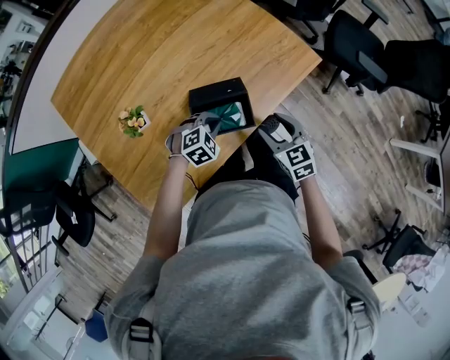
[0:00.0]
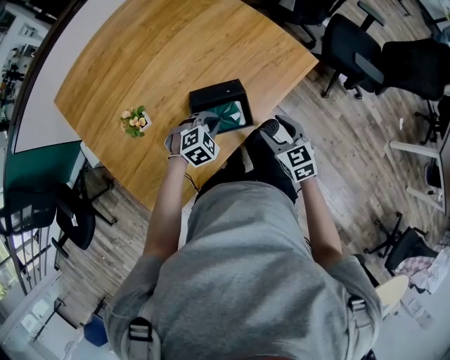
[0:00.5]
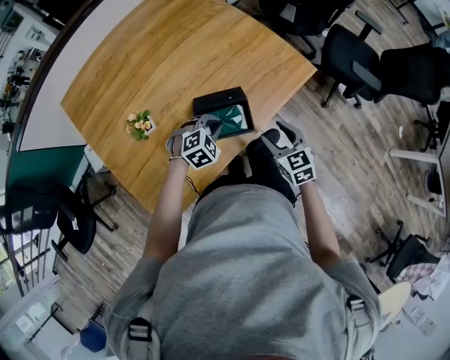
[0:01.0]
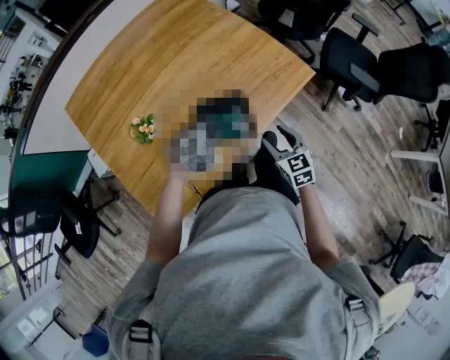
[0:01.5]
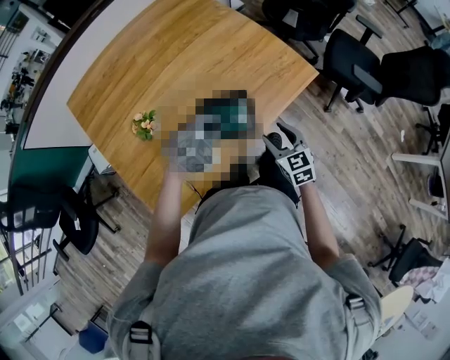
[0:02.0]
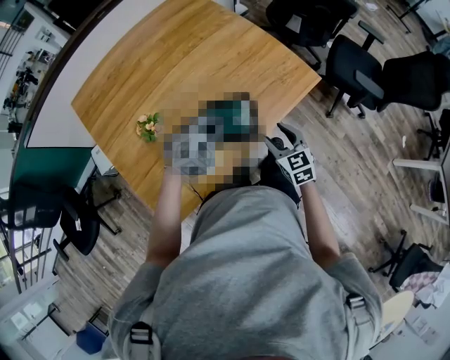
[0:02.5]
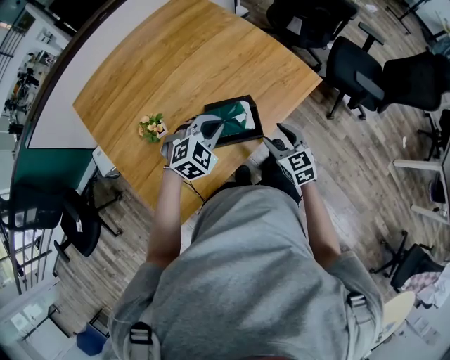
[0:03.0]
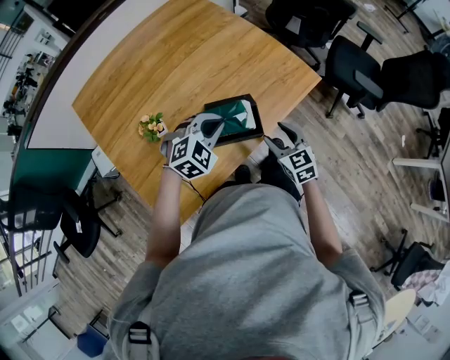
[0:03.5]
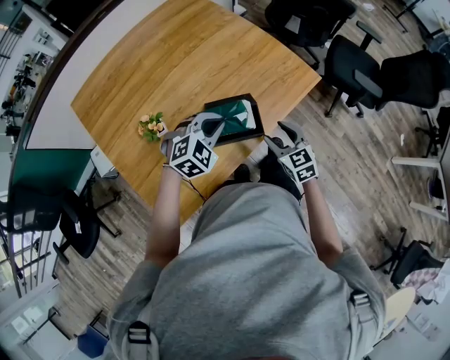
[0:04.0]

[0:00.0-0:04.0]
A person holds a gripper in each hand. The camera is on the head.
0:00.0 to 0:02.0: The left gripper shifts approximately 10 cm upward.
0:02.0 to 0:04.0: The left gripper heads upward, covering roughly 5 cm.

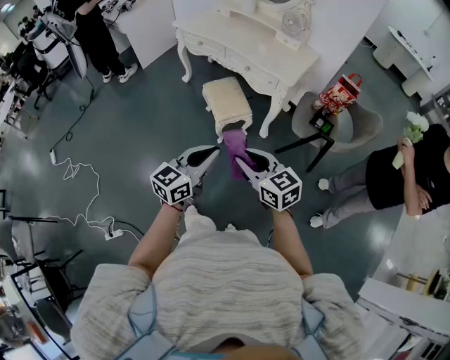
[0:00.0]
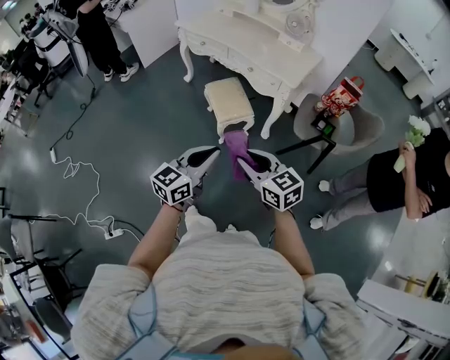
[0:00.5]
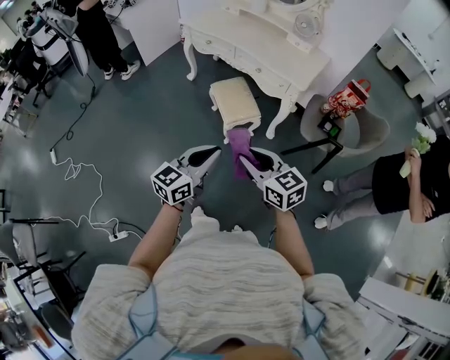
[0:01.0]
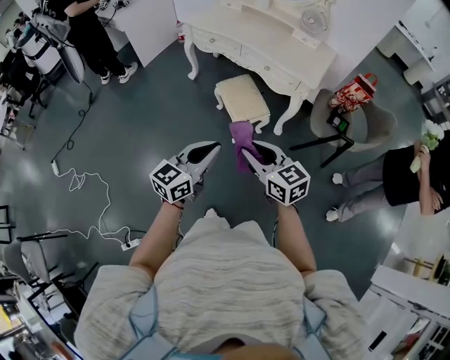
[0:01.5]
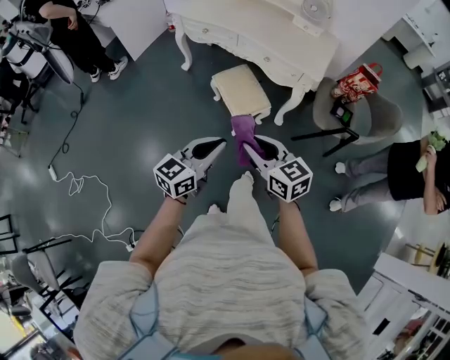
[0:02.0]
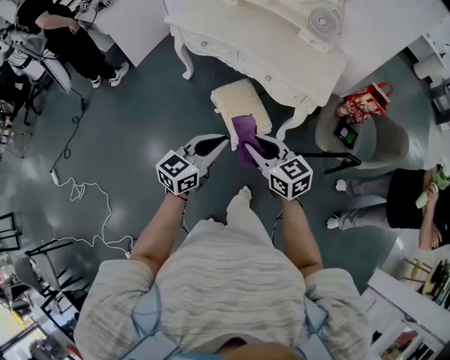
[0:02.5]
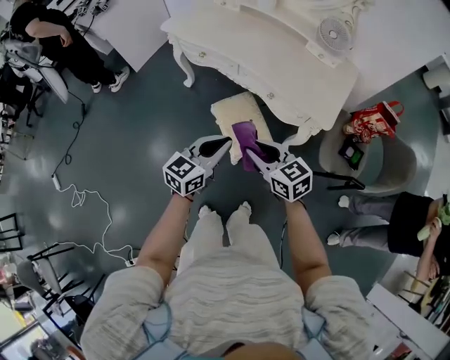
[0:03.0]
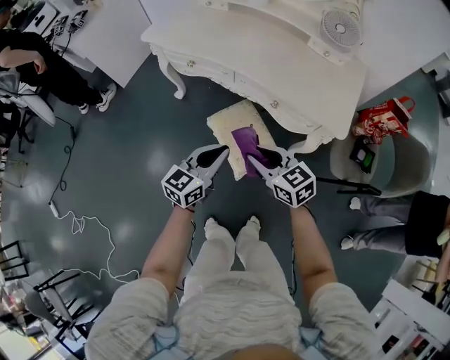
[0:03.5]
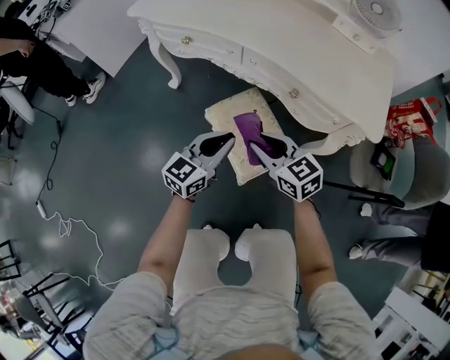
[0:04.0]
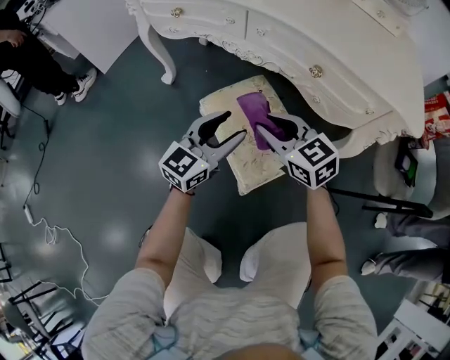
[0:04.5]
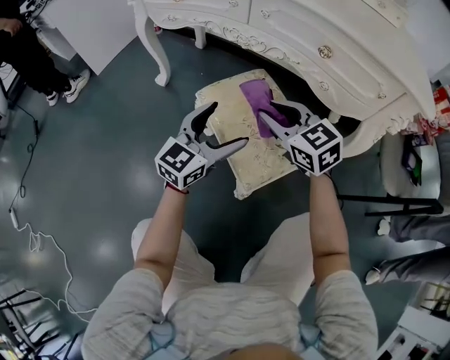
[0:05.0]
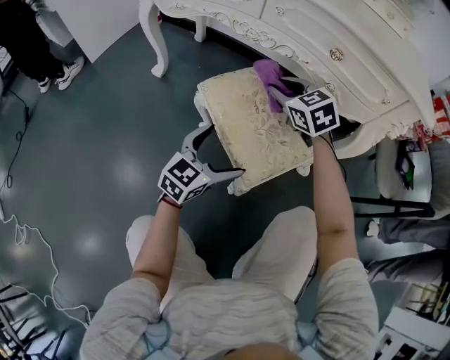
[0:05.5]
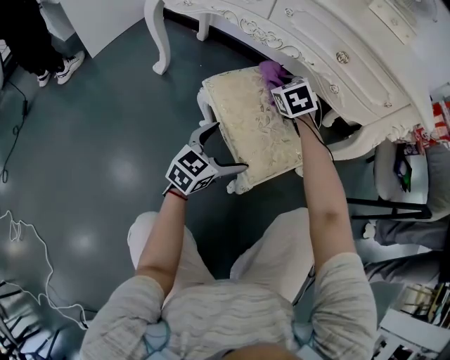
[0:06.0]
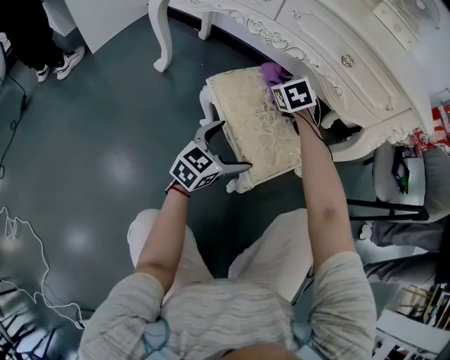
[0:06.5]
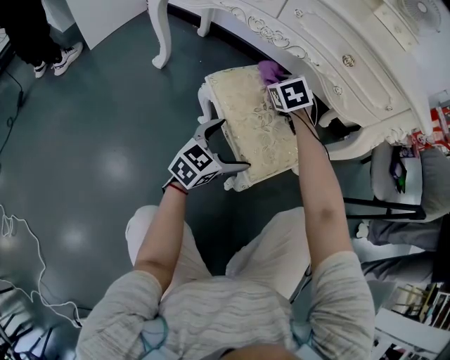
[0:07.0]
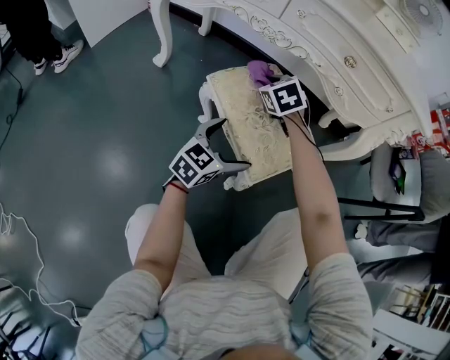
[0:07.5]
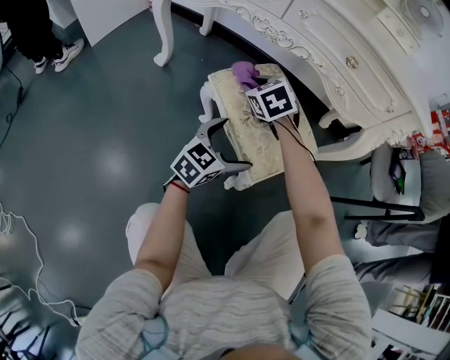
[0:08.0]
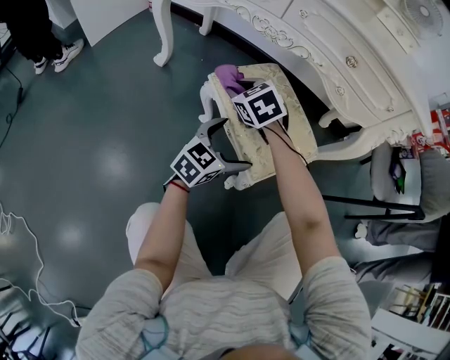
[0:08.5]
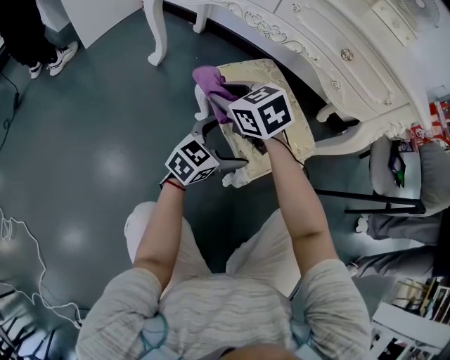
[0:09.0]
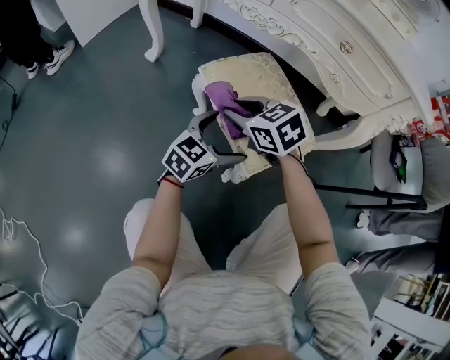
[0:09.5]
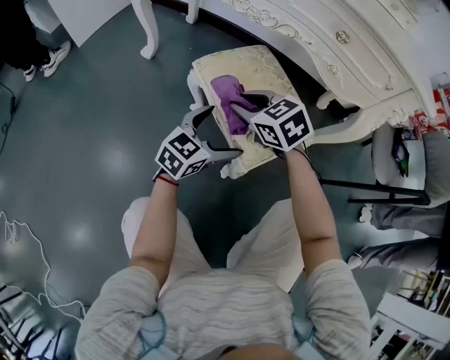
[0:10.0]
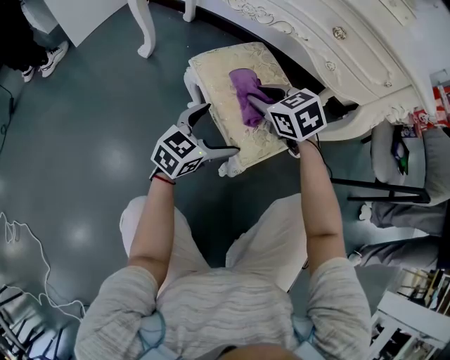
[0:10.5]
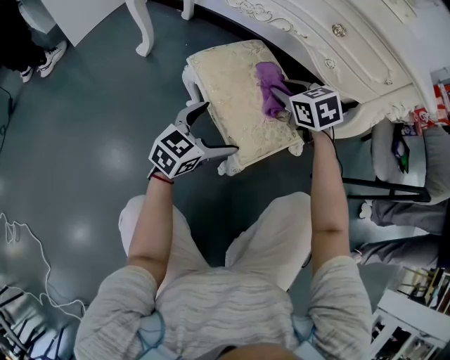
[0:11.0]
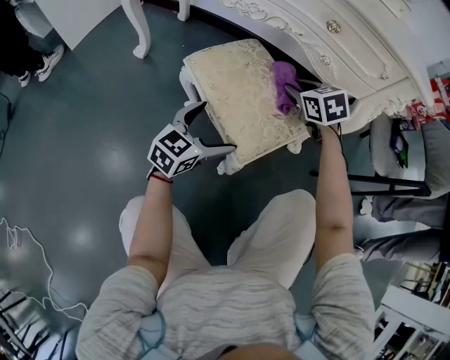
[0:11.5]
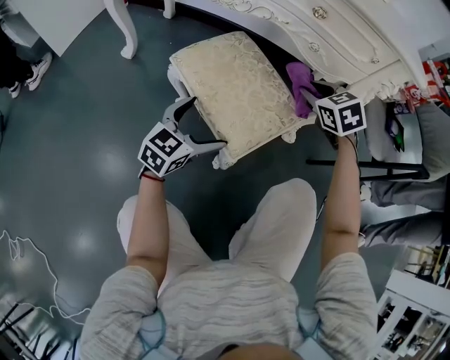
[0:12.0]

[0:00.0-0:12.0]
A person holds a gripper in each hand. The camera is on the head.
0:00.0 to 0:02.0: Both grippers travel together forward and to the left, approximately 20 cm.
0:02.0 to 0:04.0: The two grippers go some 50 cm forward and downward.
0:04.0 to 0:06.0: The right gripper shifts about 30 cm downward and forward, and swivels about 40 degrees. Meanwhile the left gripper goes approximately 30 cm downward, and opens up.
0:06.0 to 0:08.0: The right gripper is displaced to the left and backward by about 10 cm.
0:08.0 to 0:10.0: The right gripper travels backward by about 10 cm.
0:10.0 to 0:12.0: The right gripper goes approximately 20 cm to the right, and rotates about 30 degrees.

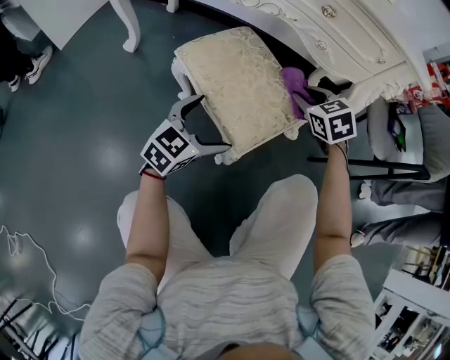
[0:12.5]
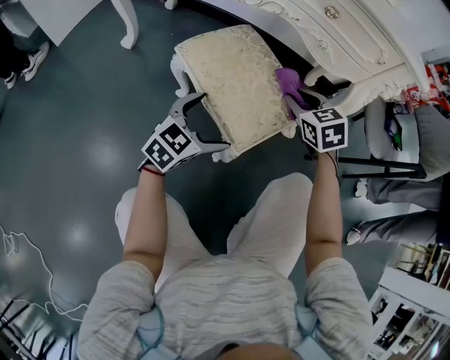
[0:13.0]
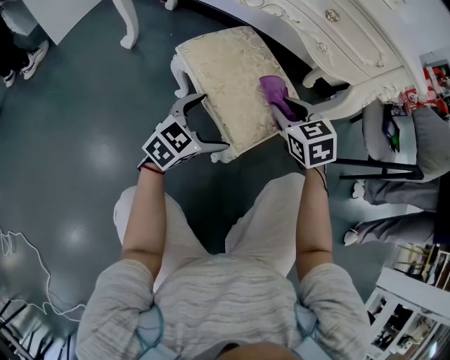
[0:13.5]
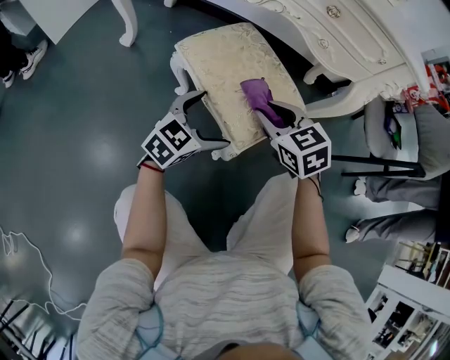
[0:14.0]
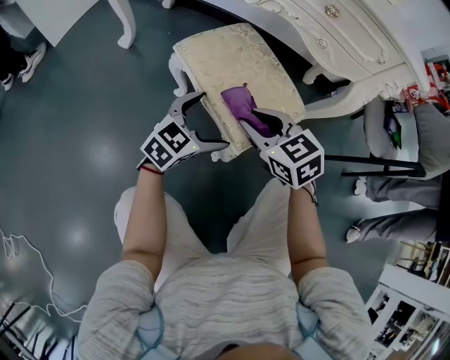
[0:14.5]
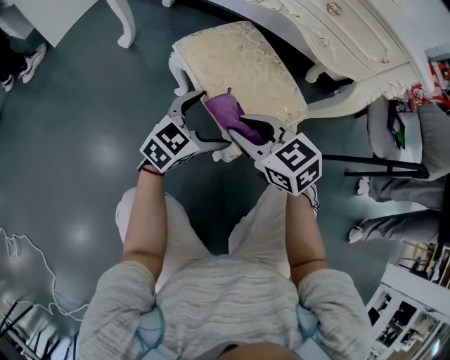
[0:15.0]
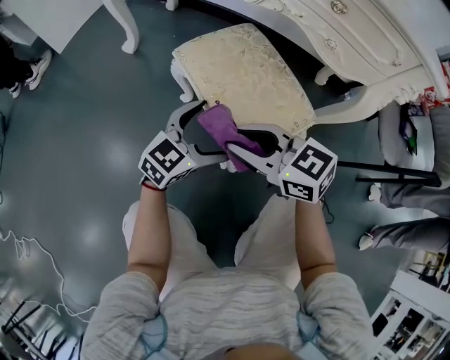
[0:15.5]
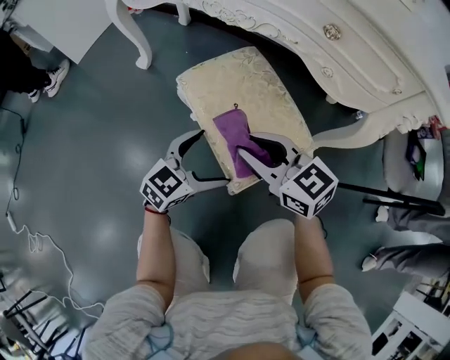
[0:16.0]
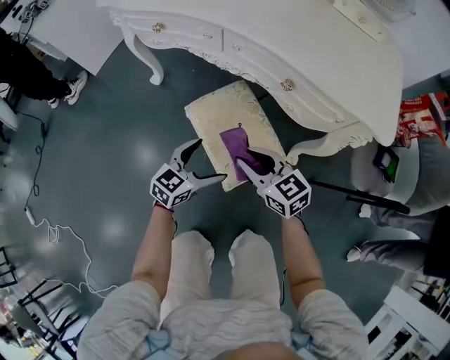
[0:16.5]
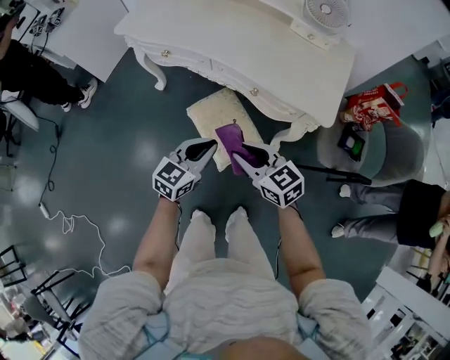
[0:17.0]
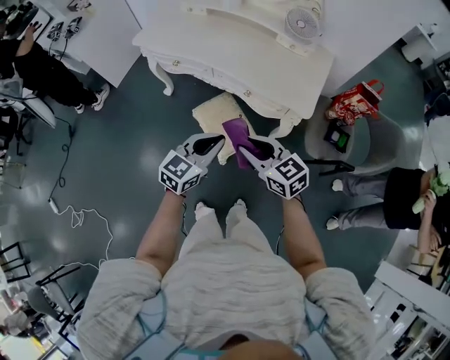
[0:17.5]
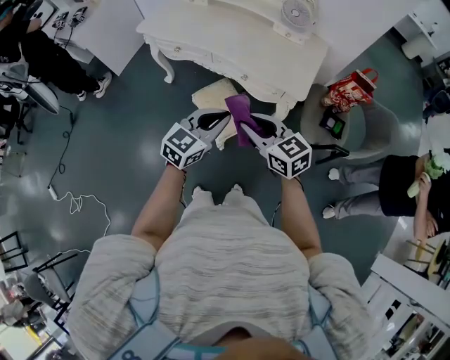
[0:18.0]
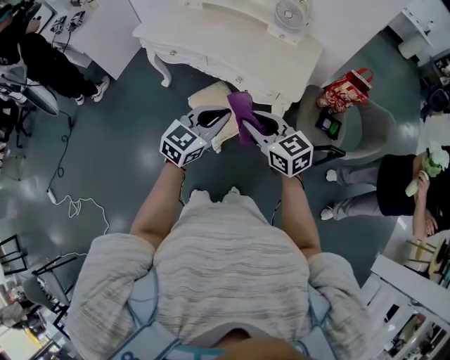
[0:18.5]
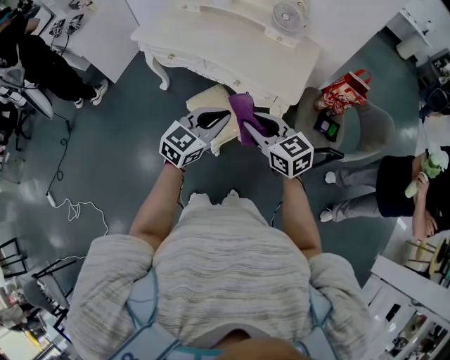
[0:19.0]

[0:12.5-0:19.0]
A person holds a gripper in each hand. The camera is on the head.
0:12.5 to 0:14.5: The right gripper heads backward and to the left, covering approximately 20 cm, and rotates roughly 20 degrees.
0:14.5 to 0:17.0: Both grippers travel together upward, approximately 40 cm. The left gripper closes up. The right gripper swivels approximately 20 degrees.
0:17.0 to 0:19.0: Both grippers travel together upward and to the right, some 25 cm.

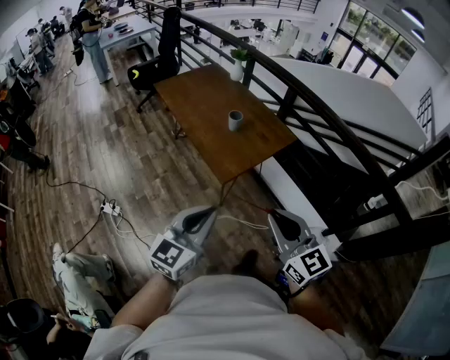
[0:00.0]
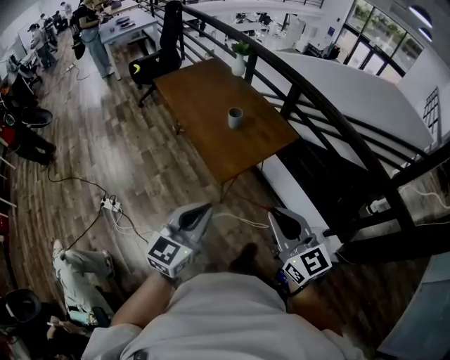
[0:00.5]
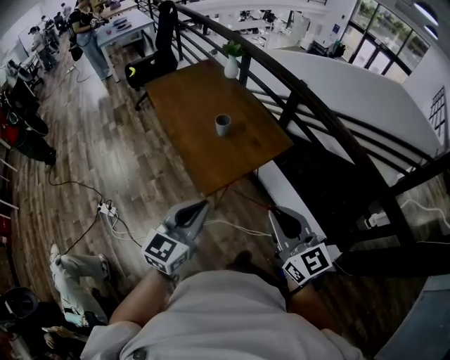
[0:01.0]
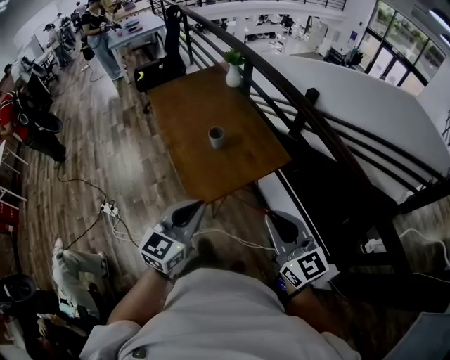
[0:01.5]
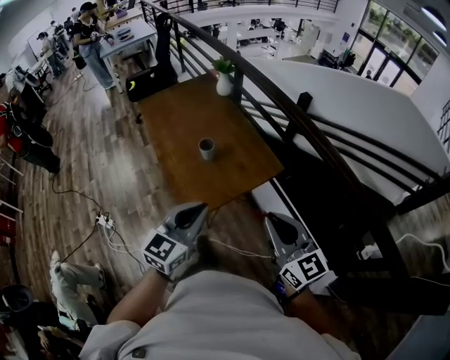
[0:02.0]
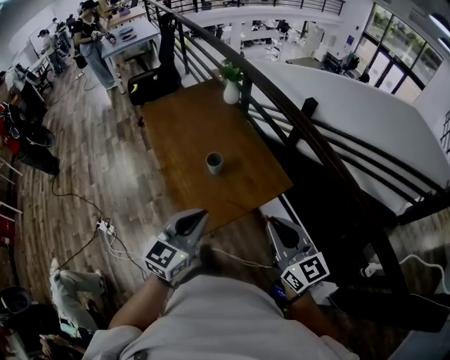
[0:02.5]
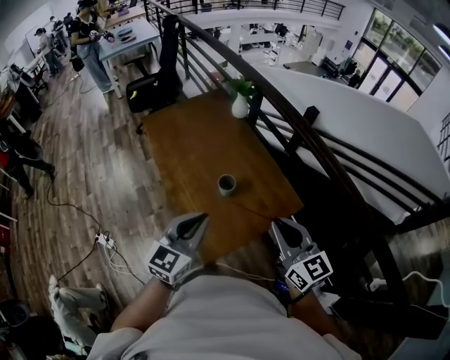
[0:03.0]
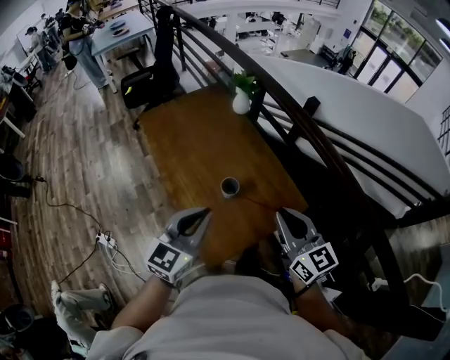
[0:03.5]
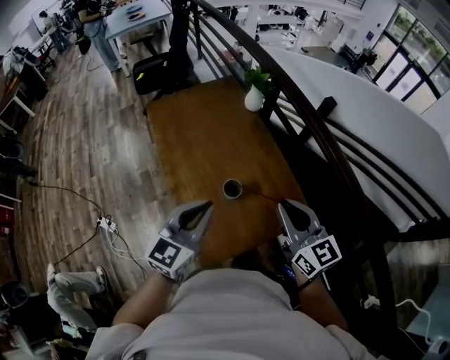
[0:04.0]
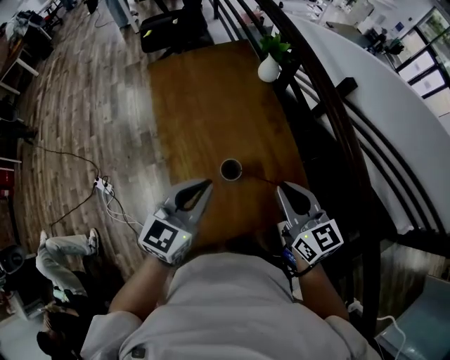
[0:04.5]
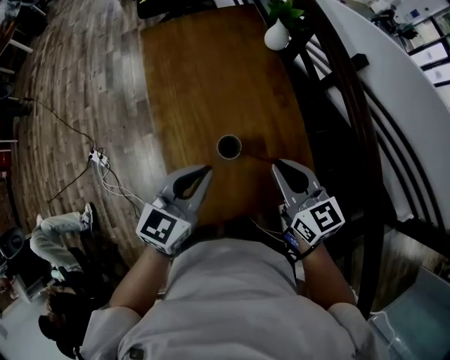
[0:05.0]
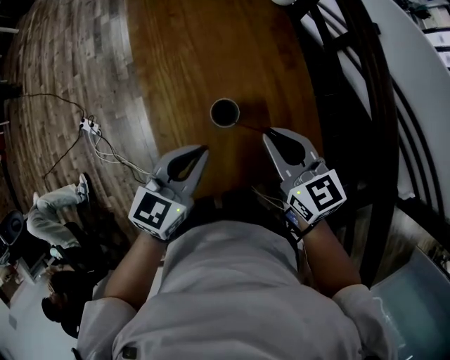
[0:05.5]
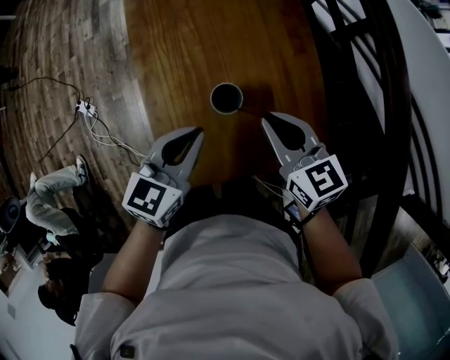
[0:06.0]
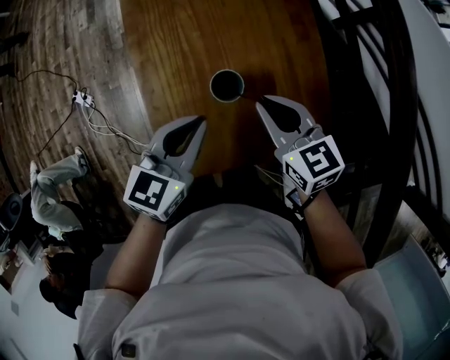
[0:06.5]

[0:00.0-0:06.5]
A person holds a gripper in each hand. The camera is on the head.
0:00.0 to 0:02.0: Both grippers travel together forward and to the right, roughly 25 cm.
0:02.0 to 0:04.5: Both grippers travel together forward, approximately 30 cm.
0:04.5 to 0:06.5: The right gripper moves downward and to the left, about 15 cm, and rotates approximately 20 degrees. The left gripper travels downward by approximately 15 cm.
